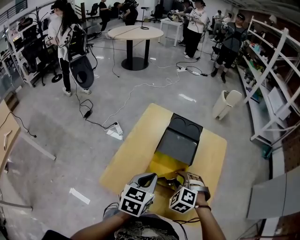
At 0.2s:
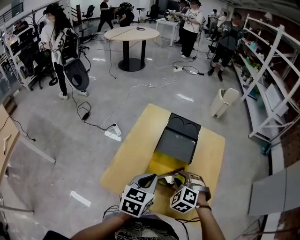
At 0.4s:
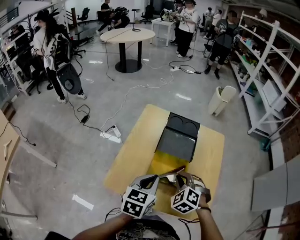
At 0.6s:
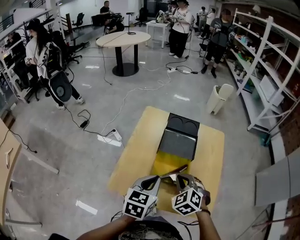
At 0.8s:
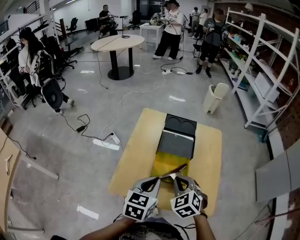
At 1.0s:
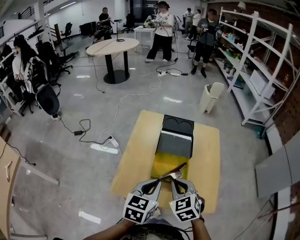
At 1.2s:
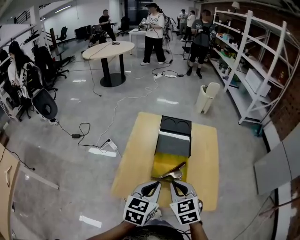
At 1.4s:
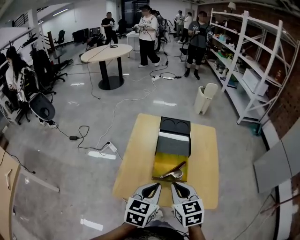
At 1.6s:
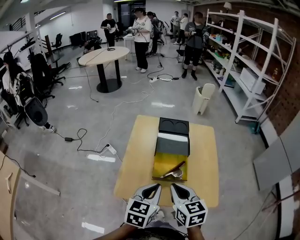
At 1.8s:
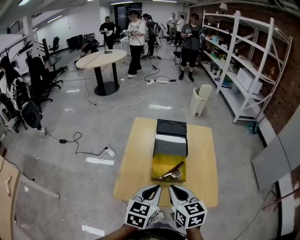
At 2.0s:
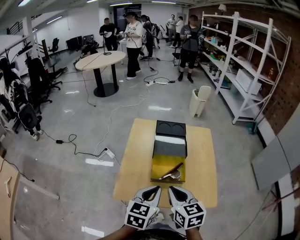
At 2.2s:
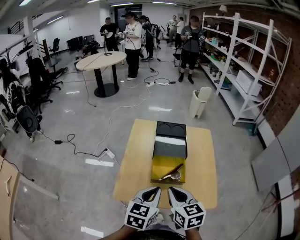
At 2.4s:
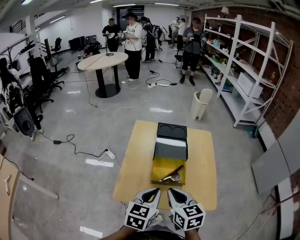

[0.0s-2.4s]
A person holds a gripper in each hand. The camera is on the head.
0.0s to 1.2s: The two grippers go roughly 25 cm backward and upward. The right gripper rolls clockwise, seen from behind, by roughly 50 degrees, and closes up.
1.2s to 2.4s: Both grippers move backward and upward, roughly 10 cm. The right gripper swivels some 20 degrees.

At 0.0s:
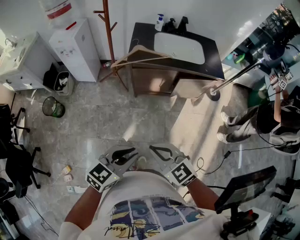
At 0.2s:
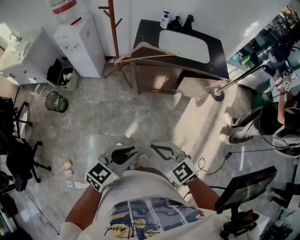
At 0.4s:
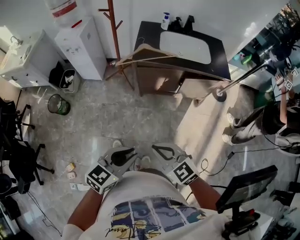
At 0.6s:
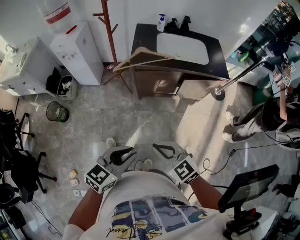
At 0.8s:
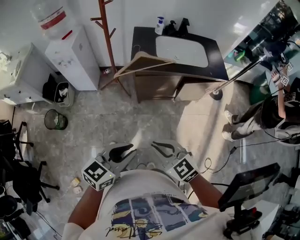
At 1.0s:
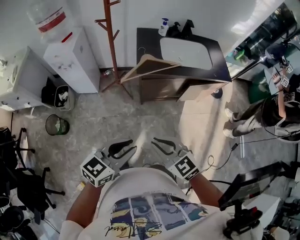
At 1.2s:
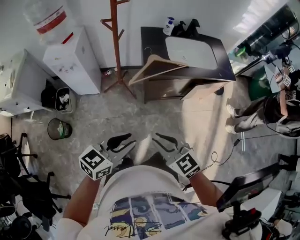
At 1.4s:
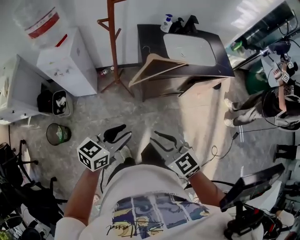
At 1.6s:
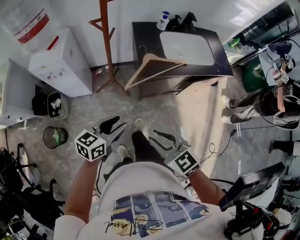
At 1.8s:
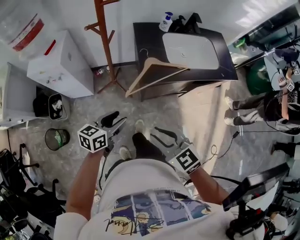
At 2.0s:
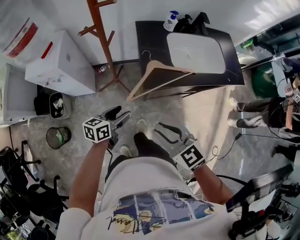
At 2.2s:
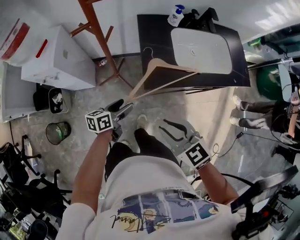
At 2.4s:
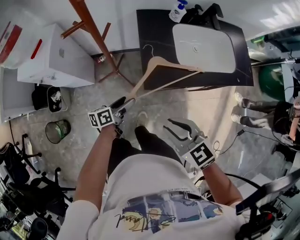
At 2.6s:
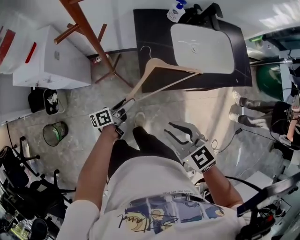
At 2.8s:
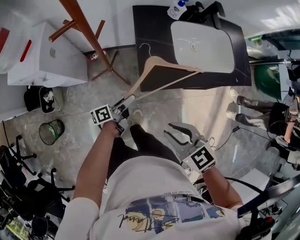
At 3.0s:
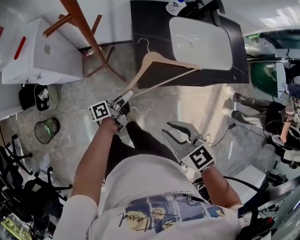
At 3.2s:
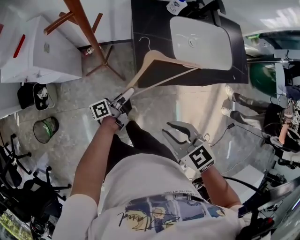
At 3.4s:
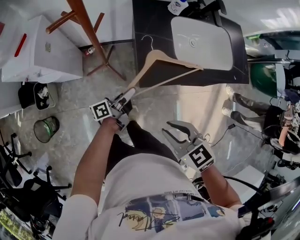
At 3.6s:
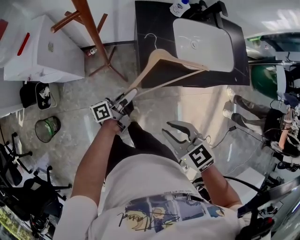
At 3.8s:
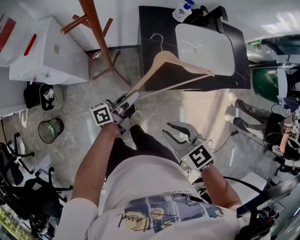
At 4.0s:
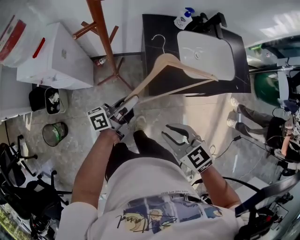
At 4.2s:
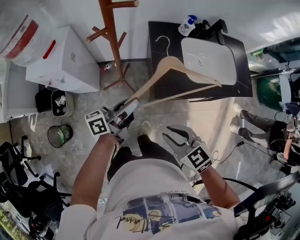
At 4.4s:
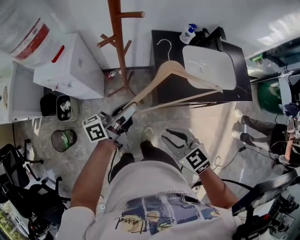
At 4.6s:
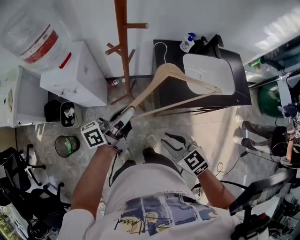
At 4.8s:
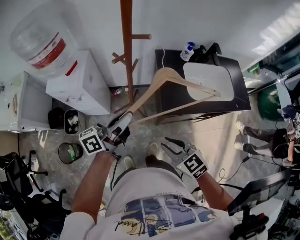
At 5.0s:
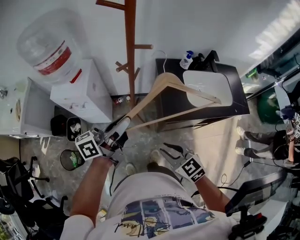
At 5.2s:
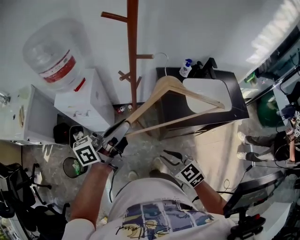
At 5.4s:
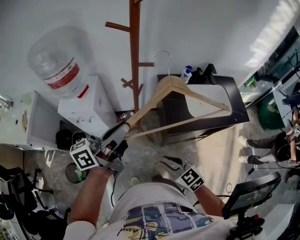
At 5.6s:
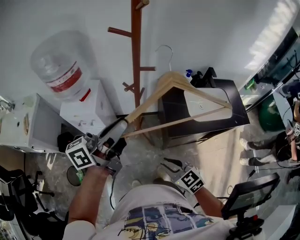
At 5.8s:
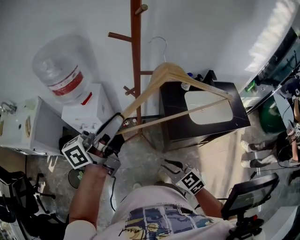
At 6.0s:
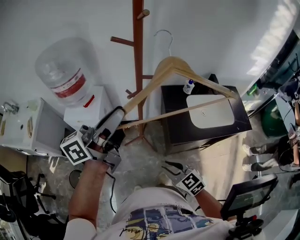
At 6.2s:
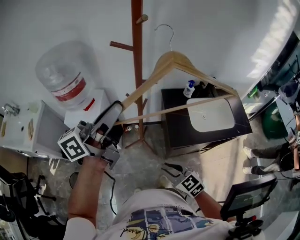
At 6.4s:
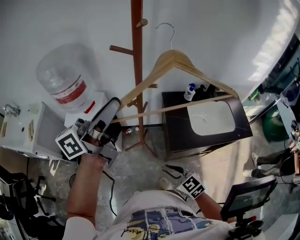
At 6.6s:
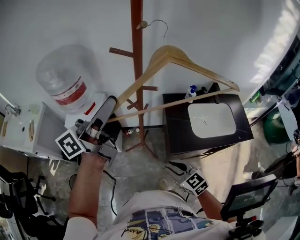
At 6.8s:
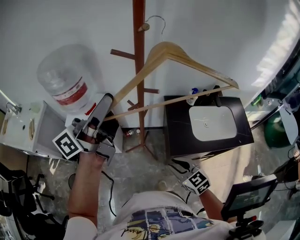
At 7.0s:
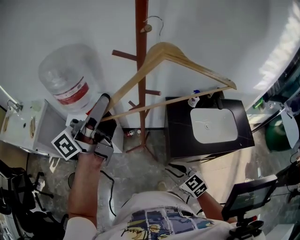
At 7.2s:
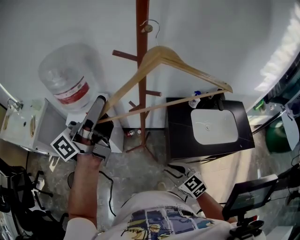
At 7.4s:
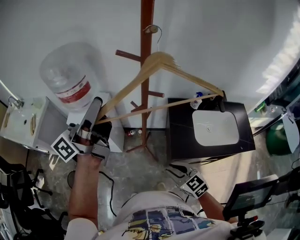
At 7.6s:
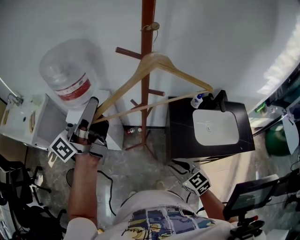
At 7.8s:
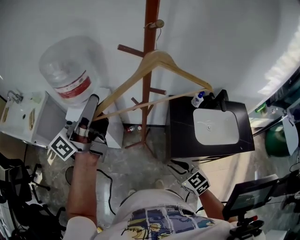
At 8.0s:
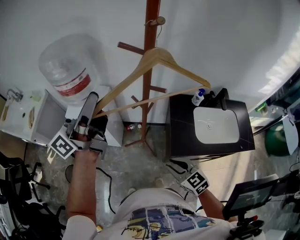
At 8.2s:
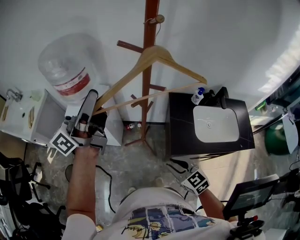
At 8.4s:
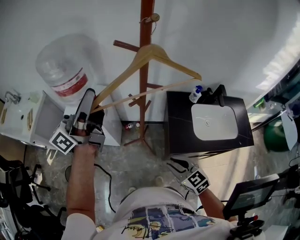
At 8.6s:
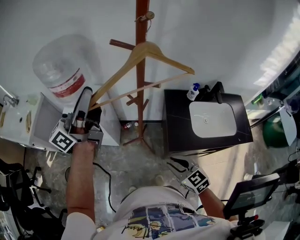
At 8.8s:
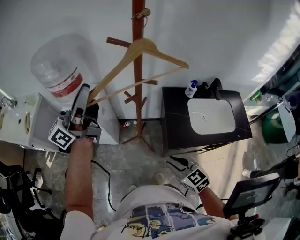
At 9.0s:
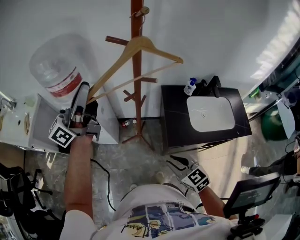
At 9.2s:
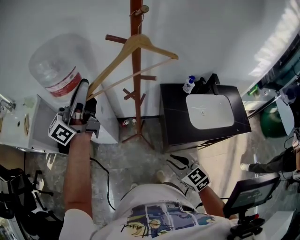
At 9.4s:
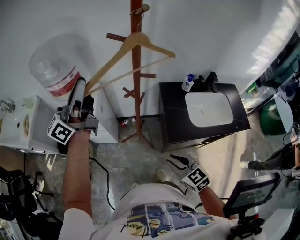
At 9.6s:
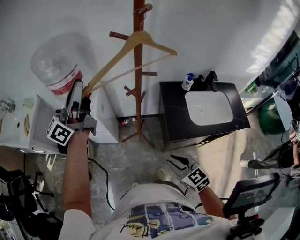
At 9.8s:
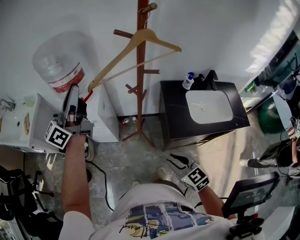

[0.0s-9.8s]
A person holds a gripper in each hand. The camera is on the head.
0.0s to 1.4s: The left gripper goes some 35 cm forward and to the left. Meanwhile the right gripper heads to the left and forward, covering approximately 30 cm, and opens up.
1.4s to 2.8s: The left gripper moves forward and downward, about 35 cm, rotates around the line of its fingers by about 60 degrees, counterclockwise from behind, and opens; the right gripper is displaced forward by some 20 cm.
2.8s to 4.2s: The left gripper travels upward by approximately 20 cm, rotates approximately 30 degrees, and closes up, while the right gripper moves to the left, about 5 cm.
4.2s to 5.6s: The right gripper is displaced to the left by approximately 10 cm; the left gripper is displaced upward and to the left by about 30 cm.
5.6s to 7.0s: The right gripper moves forward, about 10 cm. Meanwhile the left gripper travels upward and forward by roughly 15 cm.
7.0s to 8.4s: The left gripper moves to the left, some 5 cm.
8.4s to 9.8s: The right gripper shifts roughly 5 cm backward. Meanwhile the left gripper heads to the left, covering about 10 cm.

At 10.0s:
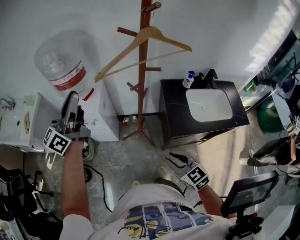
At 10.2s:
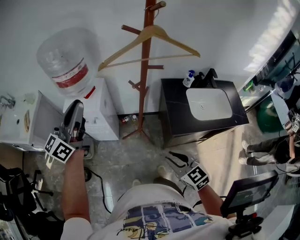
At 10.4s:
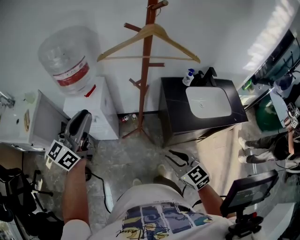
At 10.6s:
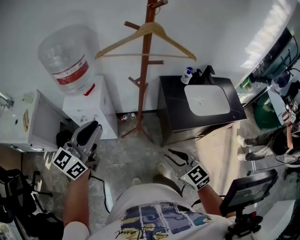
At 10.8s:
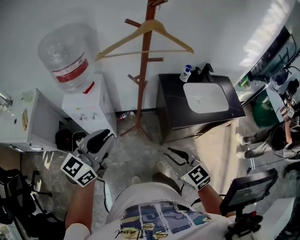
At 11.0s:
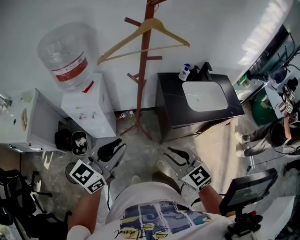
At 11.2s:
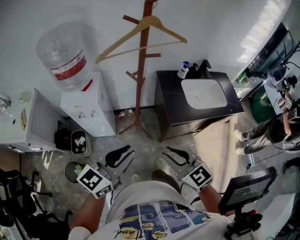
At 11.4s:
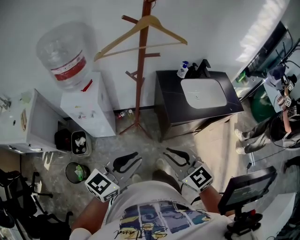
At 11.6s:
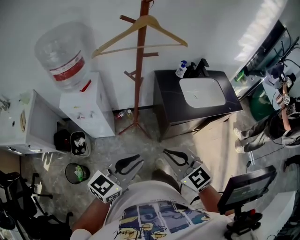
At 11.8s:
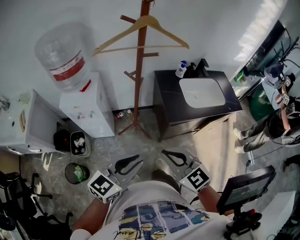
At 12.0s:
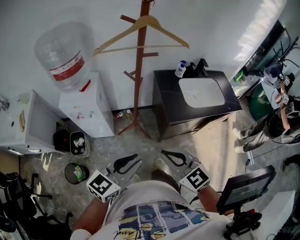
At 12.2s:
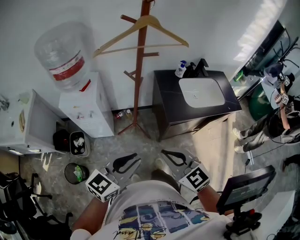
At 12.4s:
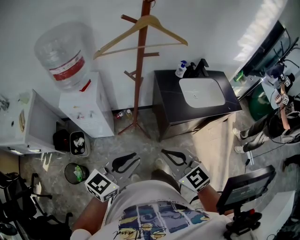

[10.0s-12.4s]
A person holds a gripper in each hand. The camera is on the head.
10.0s to 11.2s: The right gripper moves upward and backward, about 10 cm; the left gripper goes approximately 30 cm backward, to the right and downward, and changes its angle by roughly 40 degrees.
11.2s to 12.4s: The right gripper closes up. Meanwhile the left gripper ends up about 5 cm from where it was.

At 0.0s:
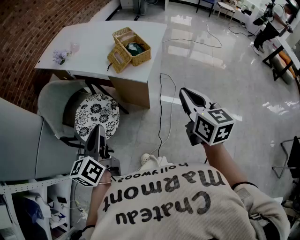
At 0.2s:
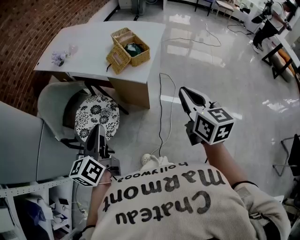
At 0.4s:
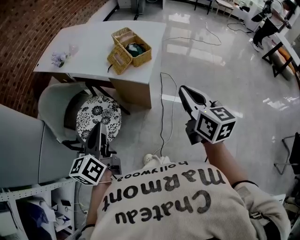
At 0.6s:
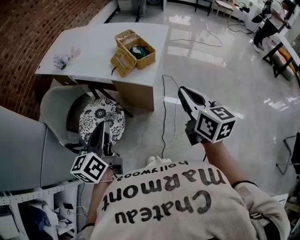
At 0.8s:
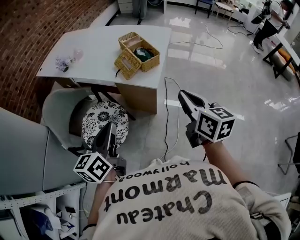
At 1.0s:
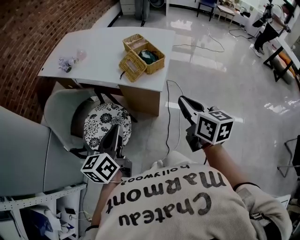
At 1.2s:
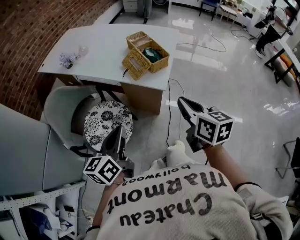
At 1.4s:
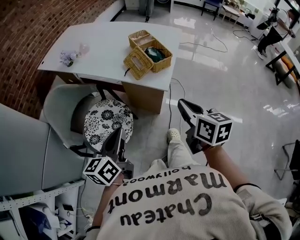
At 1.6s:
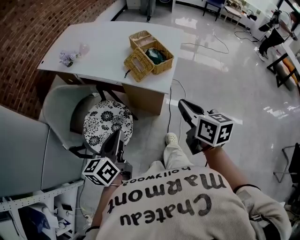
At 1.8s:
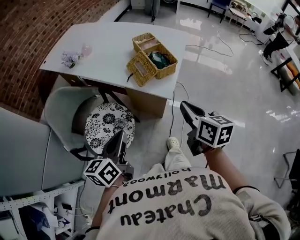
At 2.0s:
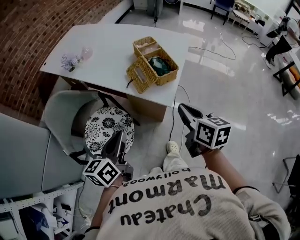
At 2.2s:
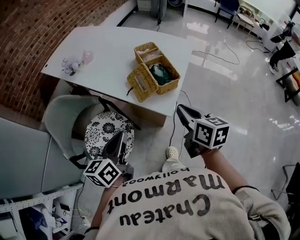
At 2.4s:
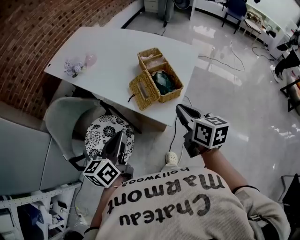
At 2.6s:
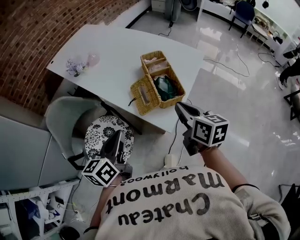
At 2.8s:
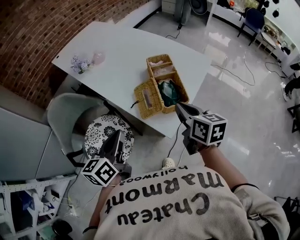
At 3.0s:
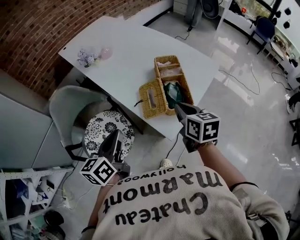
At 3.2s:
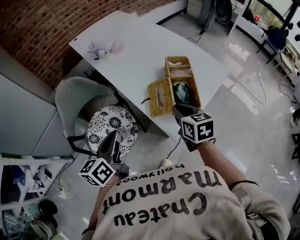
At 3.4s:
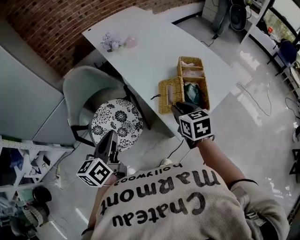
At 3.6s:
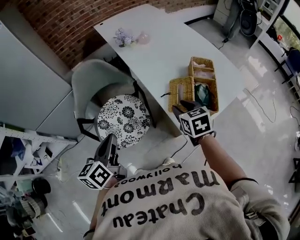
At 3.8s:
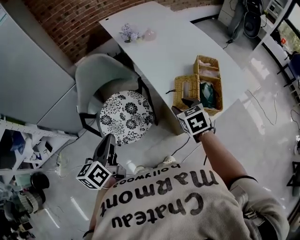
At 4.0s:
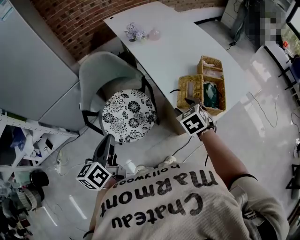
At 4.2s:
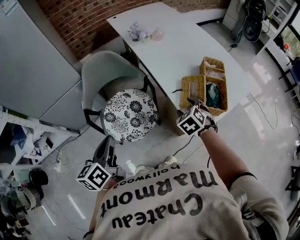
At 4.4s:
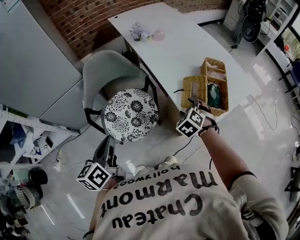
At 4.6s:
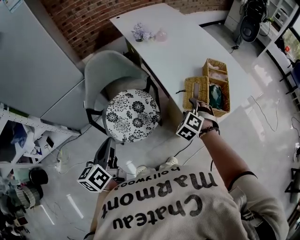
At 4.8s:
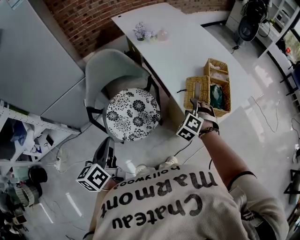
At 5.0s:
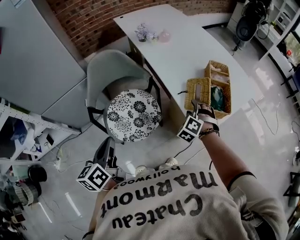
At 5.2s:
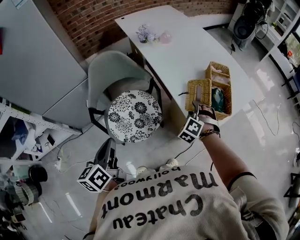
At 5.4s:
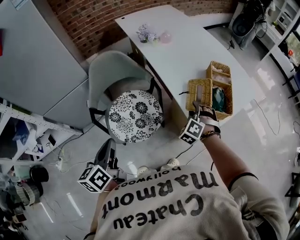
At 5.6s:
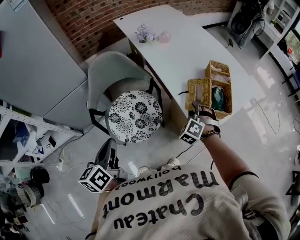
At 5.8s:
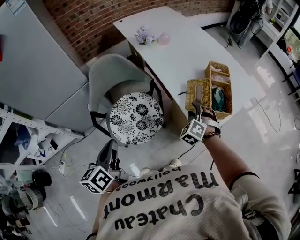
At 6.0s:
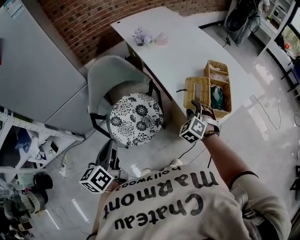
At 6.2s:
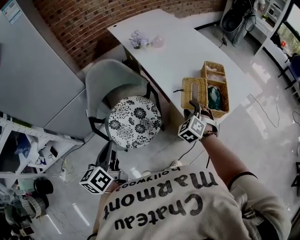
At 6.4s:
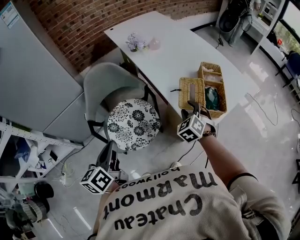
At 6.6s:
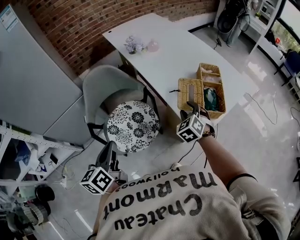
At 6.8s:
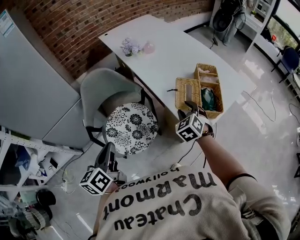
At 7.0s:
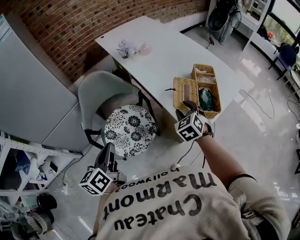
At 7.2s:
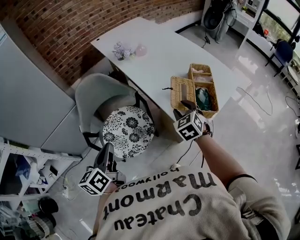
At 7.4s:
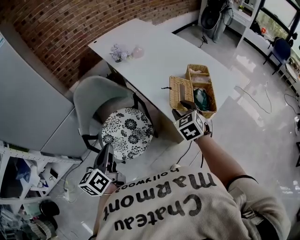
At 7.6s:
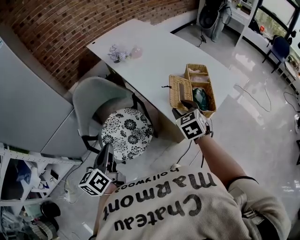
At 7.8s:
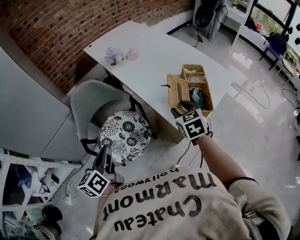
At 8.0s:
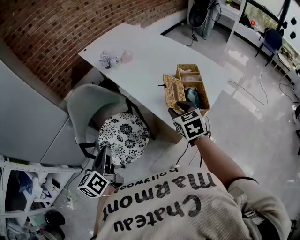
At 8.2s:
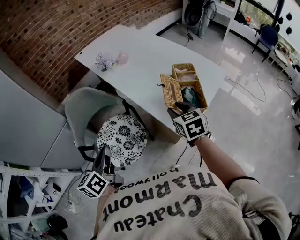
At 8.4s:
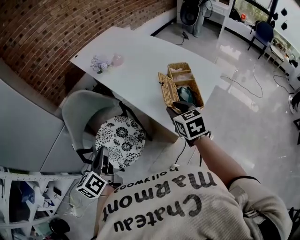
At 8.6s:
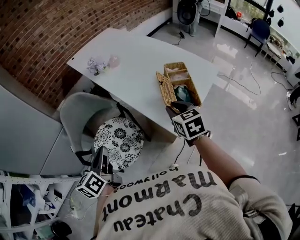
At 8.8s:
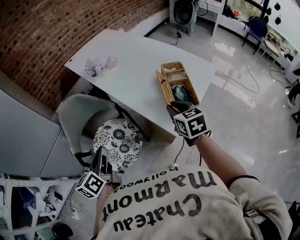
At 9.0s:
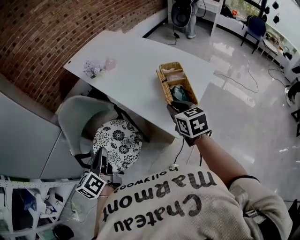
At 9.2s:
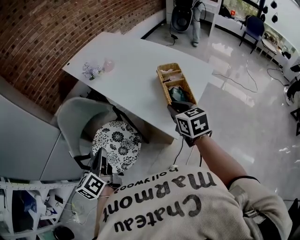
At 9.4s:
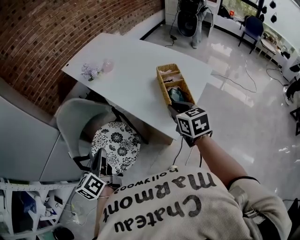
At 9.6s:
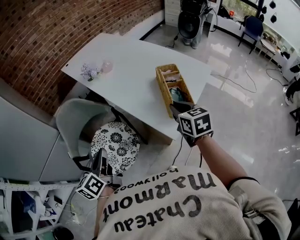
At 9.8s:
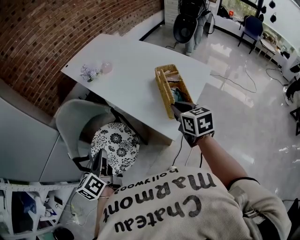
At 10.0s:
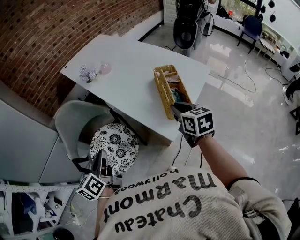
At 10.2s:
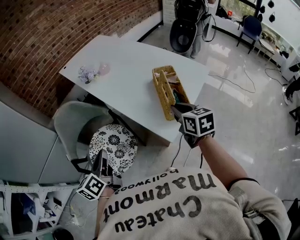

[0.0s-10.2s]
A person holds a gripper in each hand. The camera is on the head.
0.0s to 1.4s: The right gripper heads to the left, forward and downward, covering some 15 cm. Meanwhile the left gripper goes approximately 5 cm forward.
1.4s to 3.0s: The right gripper travels forward by some 30 cm, and turns by approximately 20 degrees, while the left gripper goes about 20 cm forward, and swivels approximately 20 degrees.
3.0s to 4.4s: The right gripper goes roughly 20 cm to the left and downward, rotates around the line of its fingers by roughly 70 degrees, counterclockwise from behind, and opens its fingers. Meanwhile the left gripper travels to the left and backward by approximately 25 cm, and swivels roughly 30 degrees.
4.4s to 5.8s: The right gripper closes its fingers.
5.8s to 7.2s: The right gripper travels upward by about 5 cm, and turns by approximately 40 degrees.
7.2s to 8.8s: The left gripper changes place by about 5 cm. Meanwhile the right gripper moves to the right and upward, some 10 cm, rotates about 30 degrees, and closes up.
8.8s to 10.2s: The right gripper moves to the right, about 5 cm.
